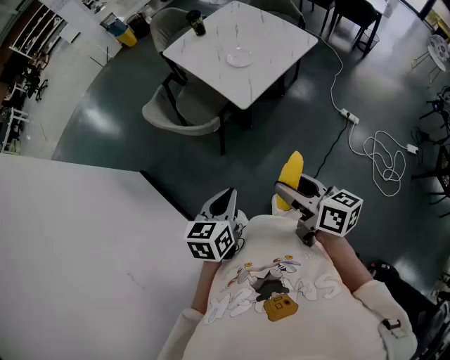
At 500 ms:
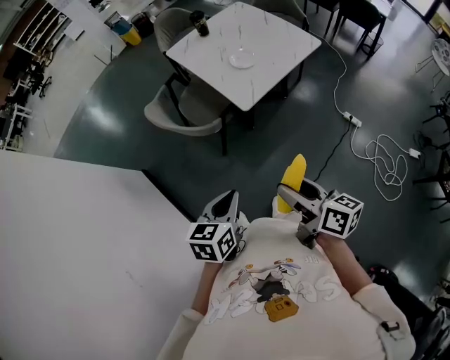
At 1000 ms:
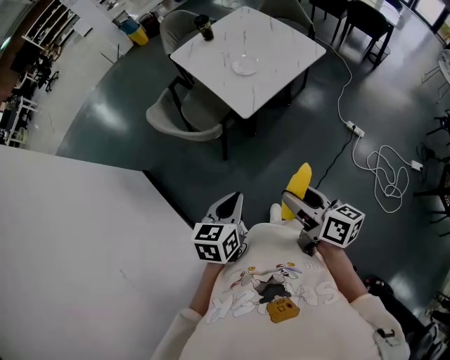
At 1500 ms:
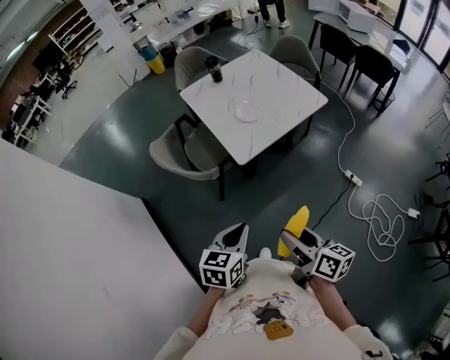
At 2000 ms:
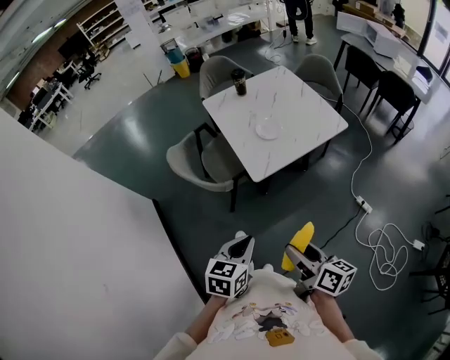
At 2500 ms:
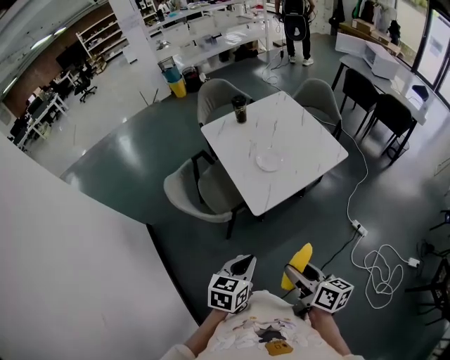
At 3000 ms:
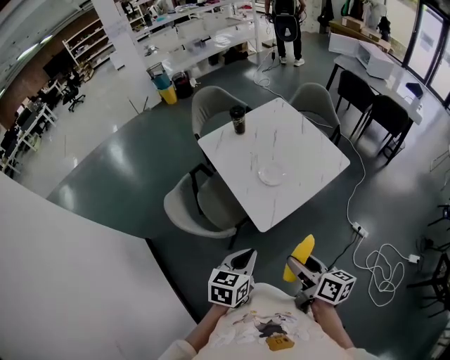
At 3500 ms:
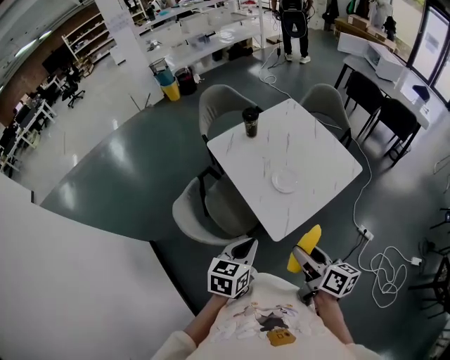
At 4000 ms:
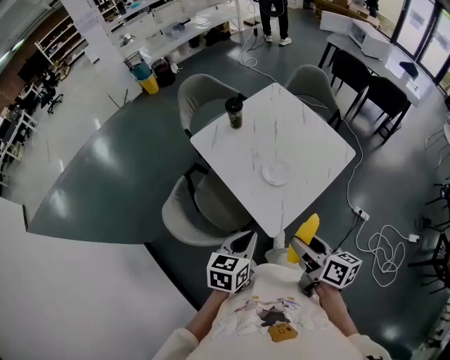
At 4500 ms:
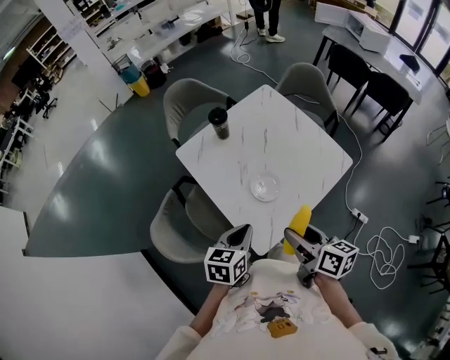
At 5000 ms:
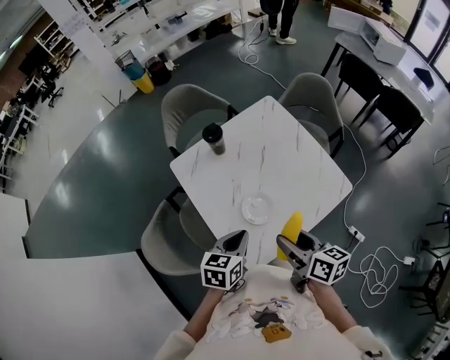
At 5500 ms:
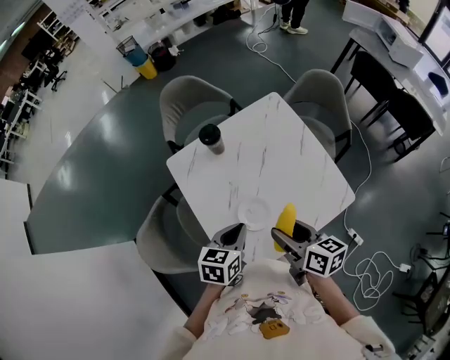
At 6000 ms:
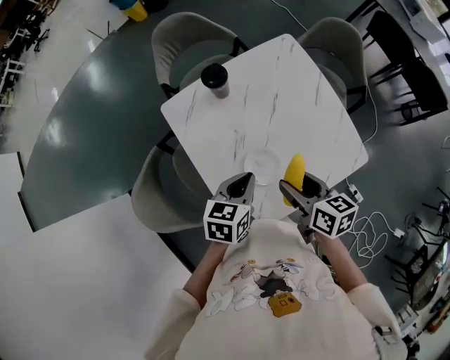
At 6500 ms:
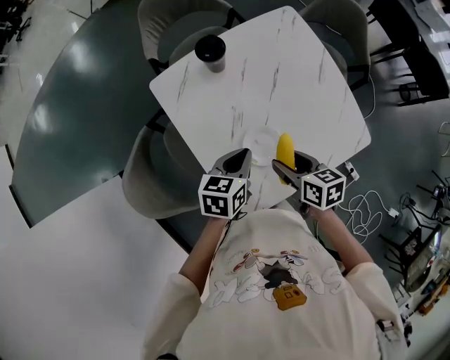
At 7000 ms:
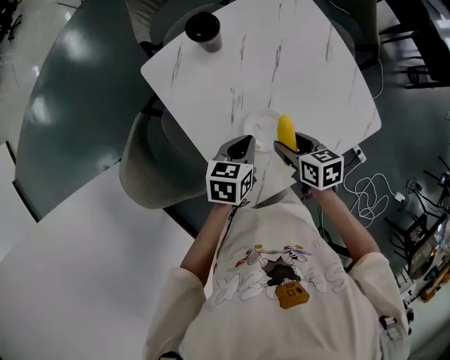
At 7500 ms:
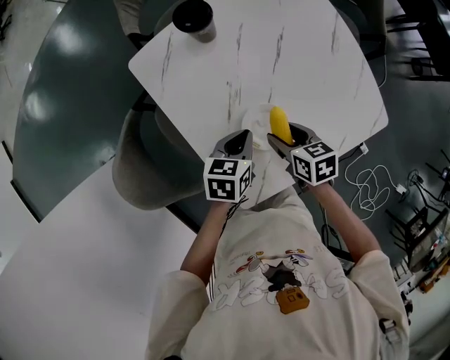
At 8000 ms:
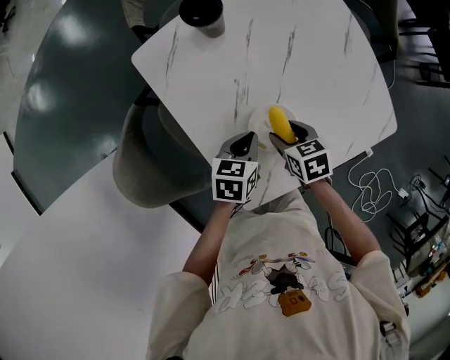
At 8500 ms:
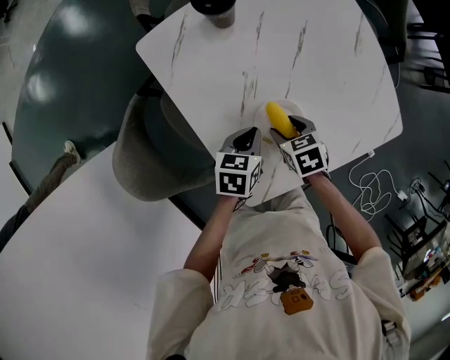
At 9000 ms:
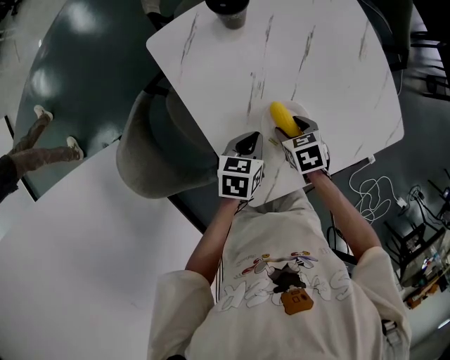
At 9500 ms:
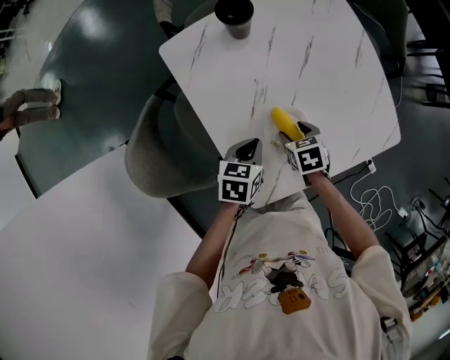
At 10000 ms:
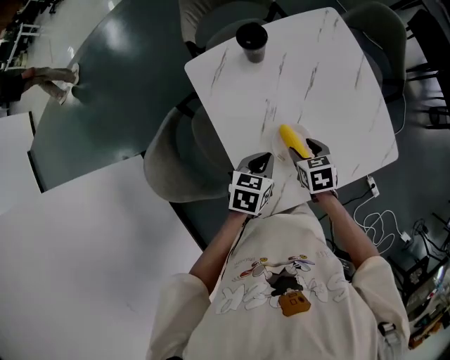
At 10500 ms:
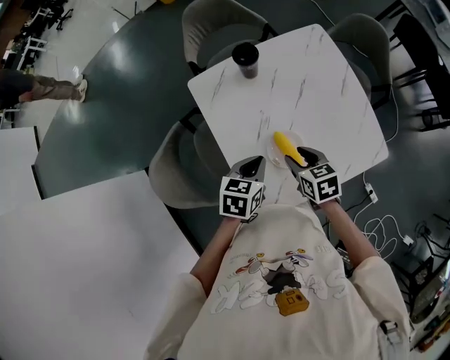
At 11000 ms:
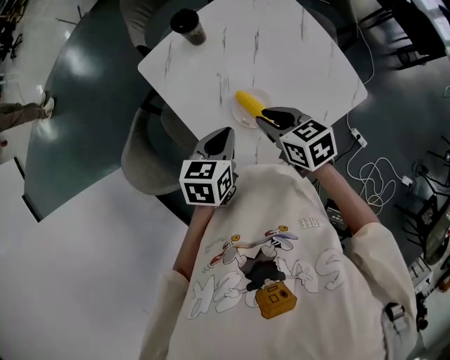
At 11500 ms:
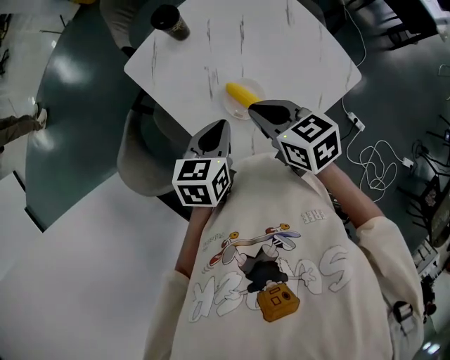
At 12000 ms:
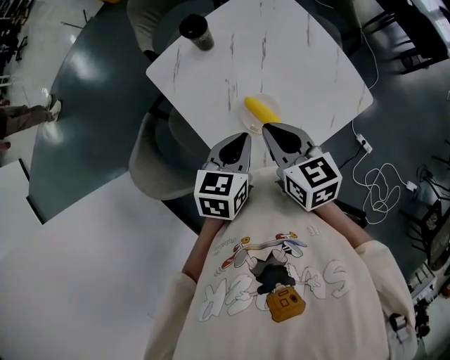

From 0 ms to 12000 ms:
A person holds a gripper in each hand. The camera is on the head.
From 0 ms to 2000 ms: Both grippers move to the right and forward, approximately 15 cm.
From 2000 ms to 4000 ms: Both grippers move forward, some 30 cm.
From 4000 ms to 6000 ms: The left gripper is displaced forward and to the right by some 30 cm; the right gripper moves forward, some 30 cm, and changes its angle by approximately 20 degrees.
From 6000 ms to 8000 ms: Both grippers travel together downward, approximately 20 cm. The right gripper rotates roughly 30 degrees.
From 8000 ms to 10000 ms: Both grippers travel together upward, roughly 5 cm.
From 10000 ms to 12000 ms: The right gripper travels upward by about 20 cm, rotates about 30 degrees, and closes; the left gripper travels upward by some 15 cm.

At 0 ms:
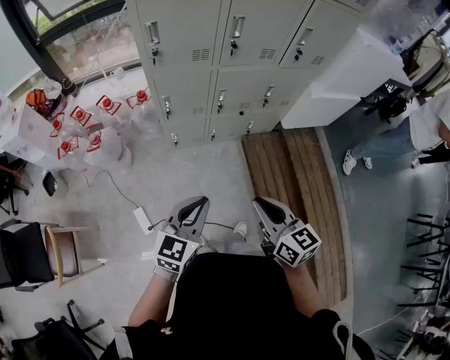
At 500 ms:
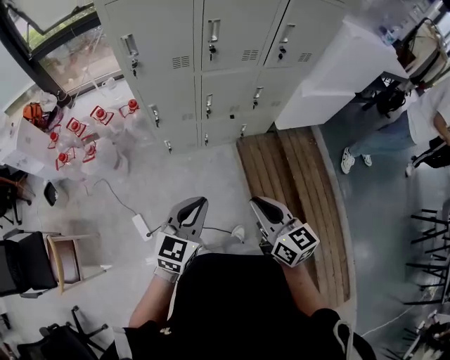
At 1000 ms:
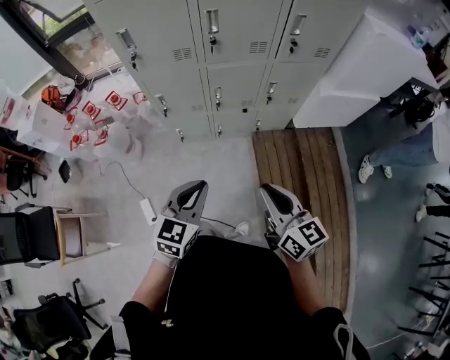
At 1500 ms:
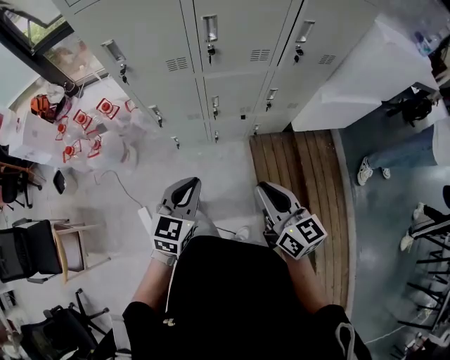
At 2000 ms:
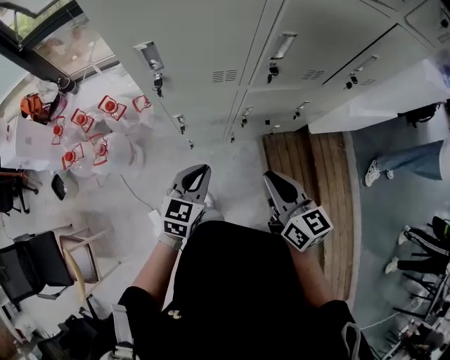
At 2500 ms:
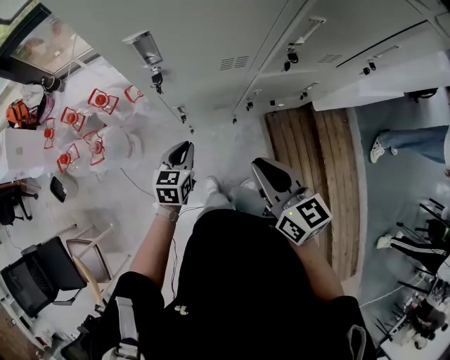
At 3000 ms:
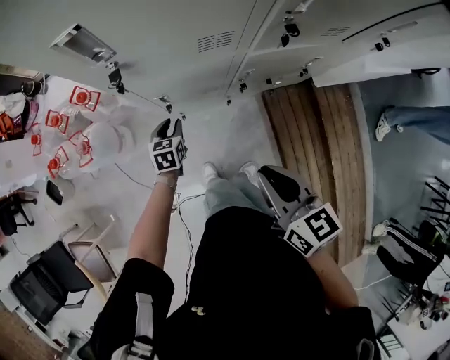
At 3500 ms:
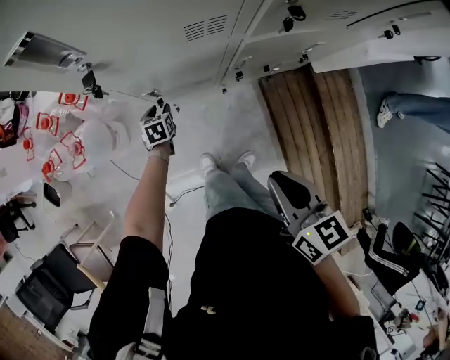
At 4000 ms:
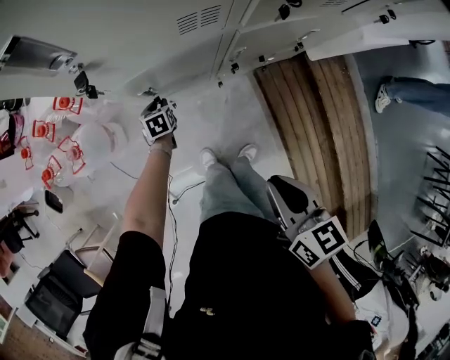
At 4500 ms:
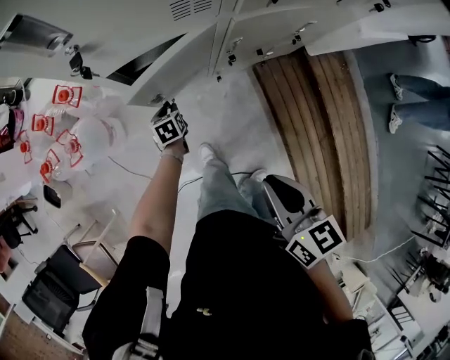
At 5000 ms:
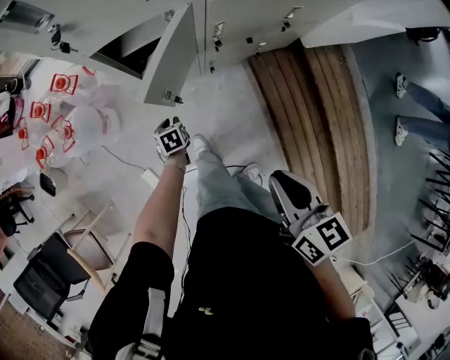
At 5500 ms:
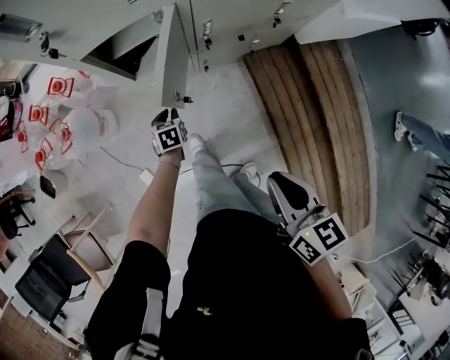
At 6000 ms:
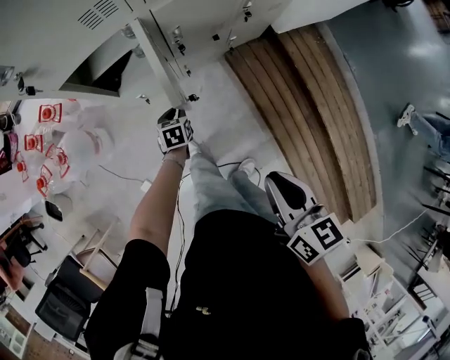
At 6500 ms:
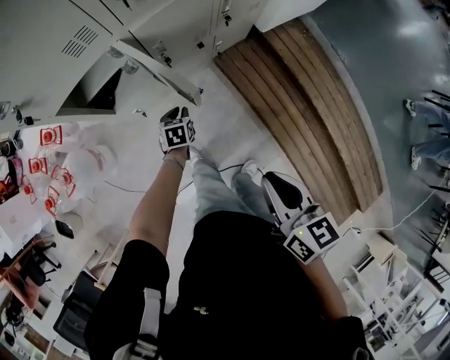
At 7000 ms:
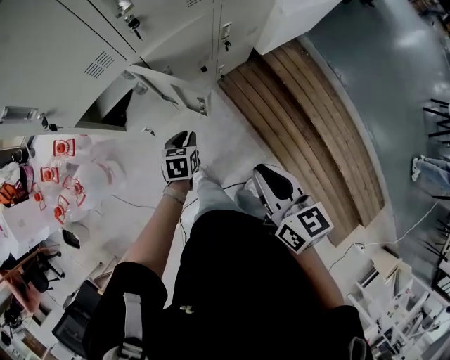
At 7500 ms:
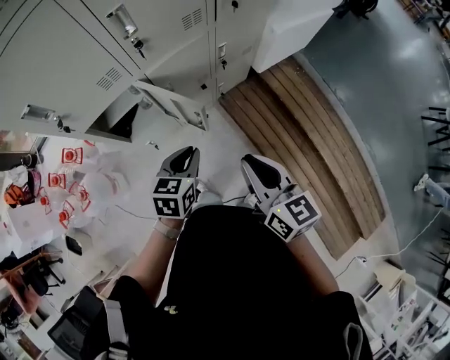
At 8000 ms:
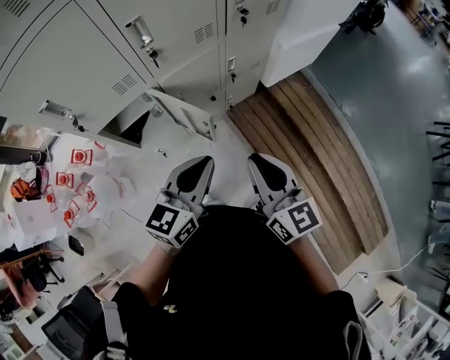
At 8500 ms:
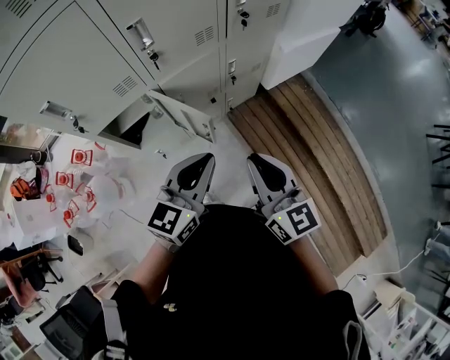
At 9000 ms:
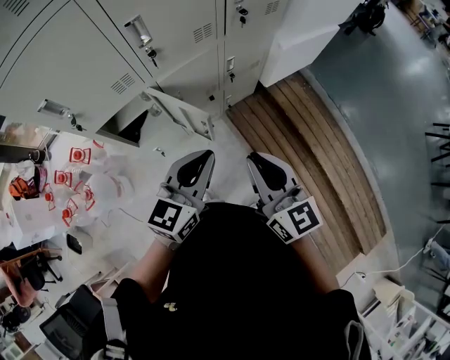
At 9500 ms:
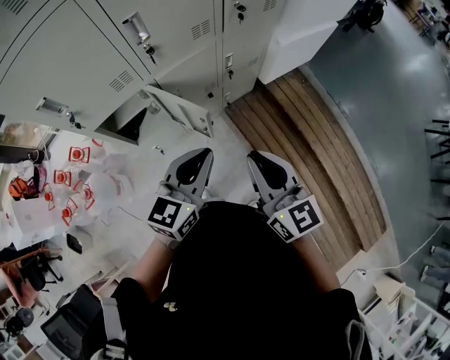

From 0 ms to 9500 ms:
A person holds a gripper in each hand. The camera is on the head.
From 0 ms to 2000 ms: Both grippers move forward, about 30 cm.
From 2000 ms to 4000 ms: The left gripper is displaced downward and forward by roughly 40 cm, tilts its fingers approximately 30 degrees downward, and opens, while the right gripper travels downward by some 10 cm, and changes its angle by roughly 20 degrees.
From 4000 ms to 5500 ms: The grippers both shift backward and to the right by roughly 15 cm.
From 5500 ms to 7500 ms: The right gripper travels upward by approximately 10 cm, and turns by roughly 20 degrees; the left gripper is displaced upward by some 30 cm, and changes its angle by roughly 40 degrees.
From 7500 ms to 9500 ms: The right gripper travels upward by about 5 cm; the left gripper goes about 15 cm upward, and changes its angle by approximately 30 degrees.

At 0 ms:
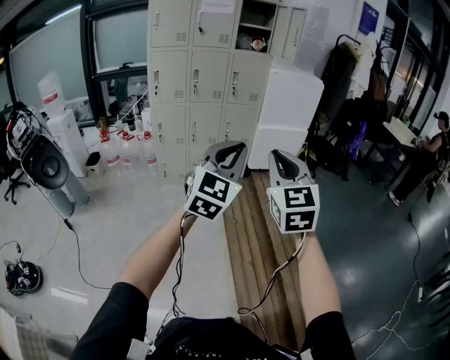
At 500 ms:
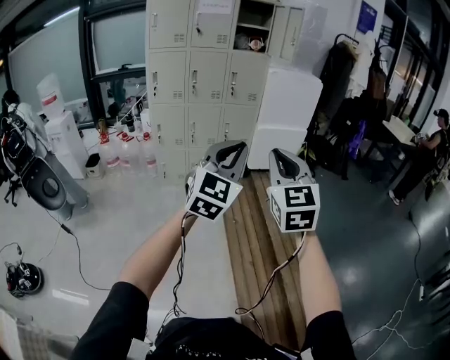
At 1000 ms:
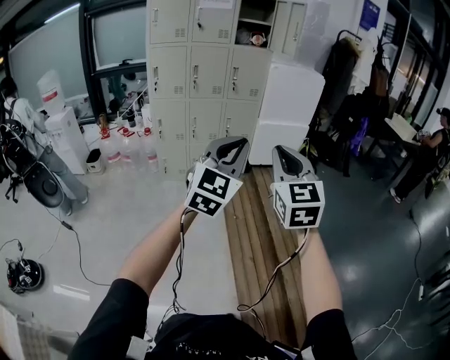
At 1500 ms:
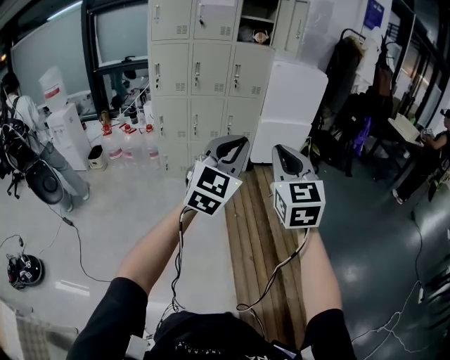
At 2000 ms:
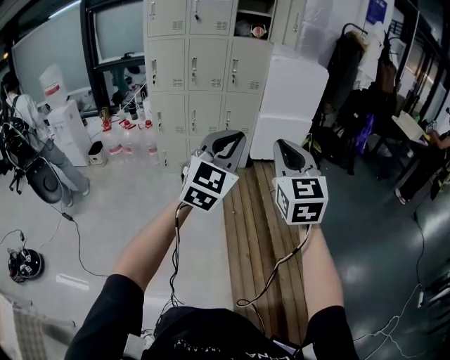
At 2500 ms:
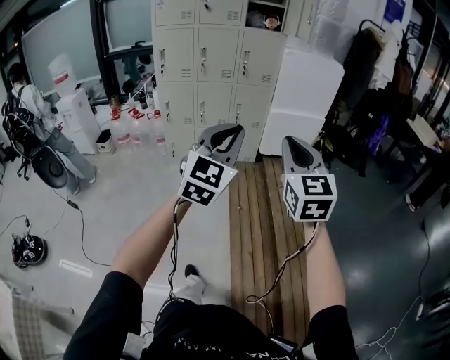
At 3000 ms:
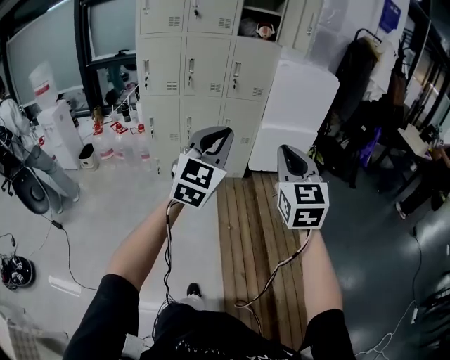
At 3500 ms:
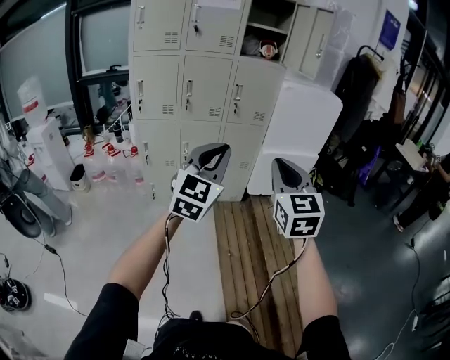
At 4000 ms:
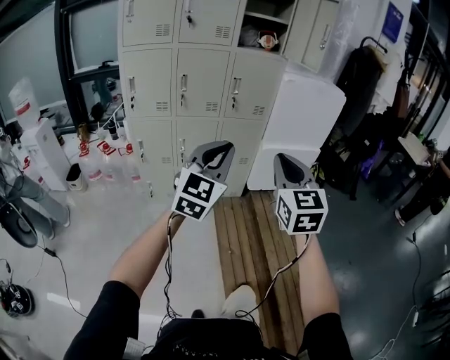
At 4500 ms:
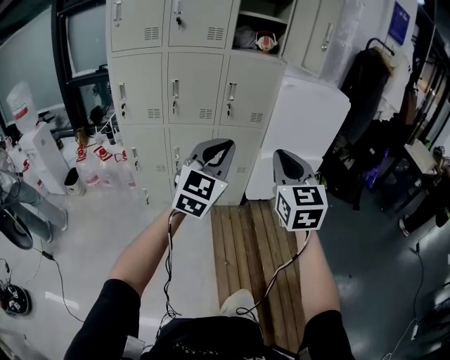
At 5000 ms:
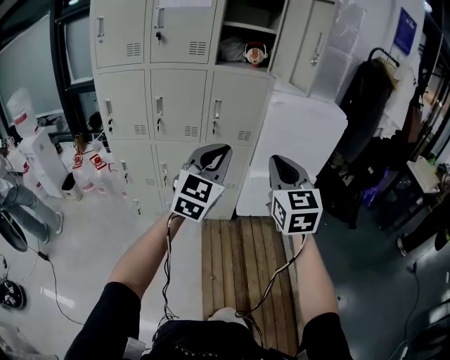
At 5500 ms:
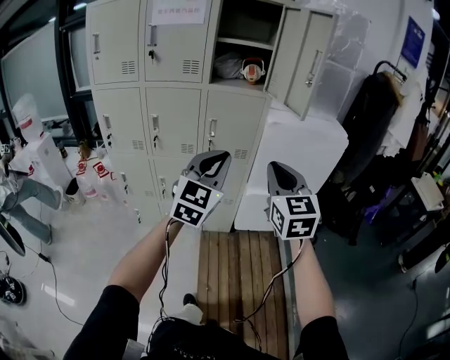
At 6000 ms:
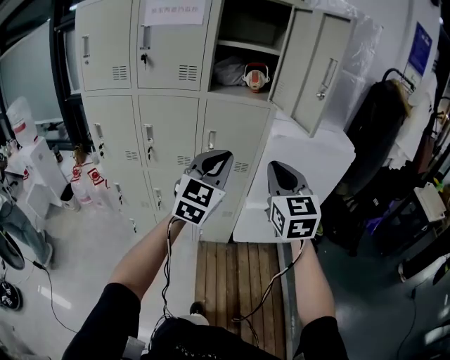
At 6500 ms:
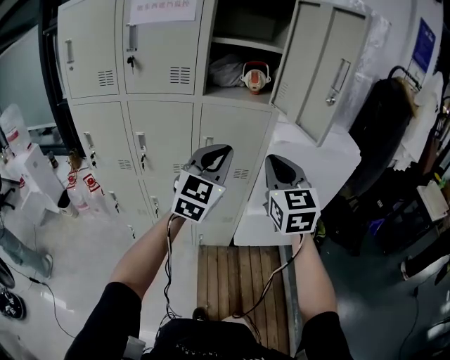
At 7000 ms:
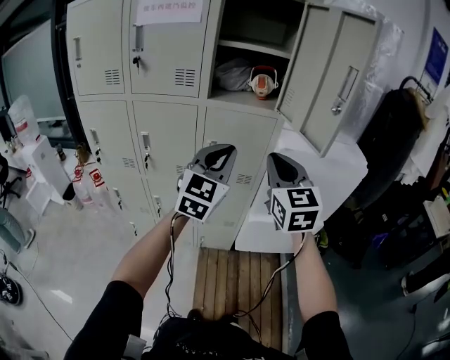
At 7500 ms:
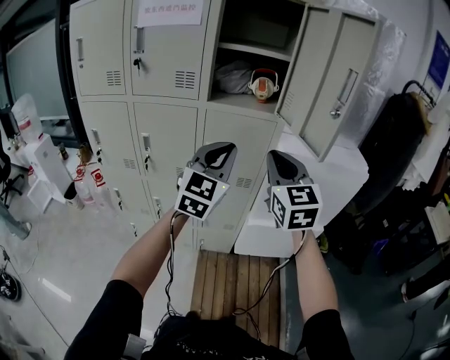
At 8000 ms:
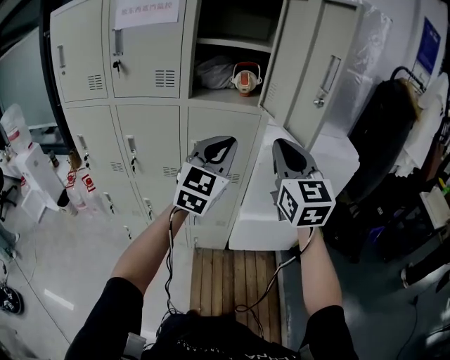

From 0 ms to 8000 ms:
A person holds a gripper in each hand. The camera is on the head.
From 0 ms to 2000 ms: The two grippers go roughly 5 cm to the right.
From 2000 ms to 4000 ms: The grippers both shift forward by roughly 40 cm.
From 4000 ms to 6000 ms: The grippers both shift forward by about 40 cm.
From 6000 ms to 8000 ms: The right gripper goes some 15 cm forward and upward, while the left gripper is displaced forward and to the right by about 15 cm.
